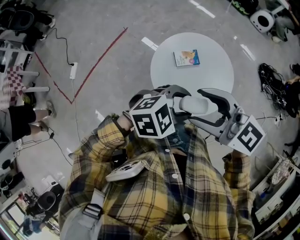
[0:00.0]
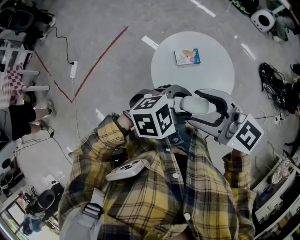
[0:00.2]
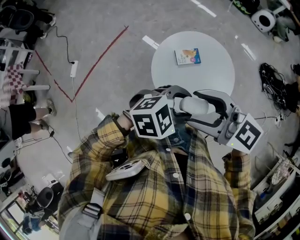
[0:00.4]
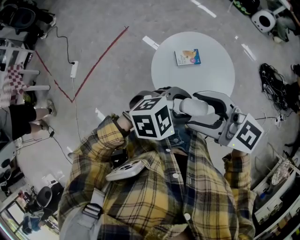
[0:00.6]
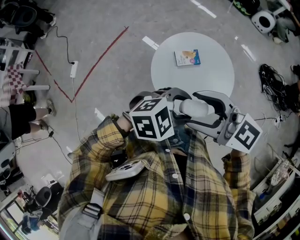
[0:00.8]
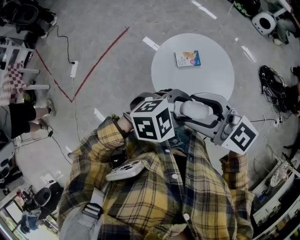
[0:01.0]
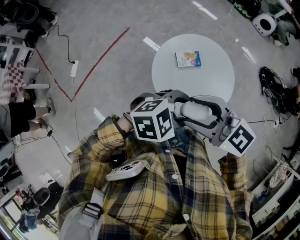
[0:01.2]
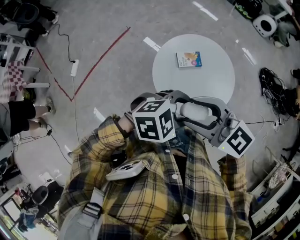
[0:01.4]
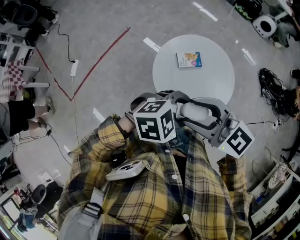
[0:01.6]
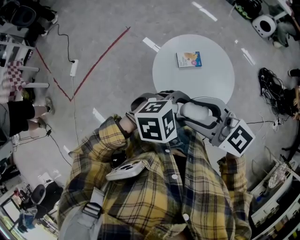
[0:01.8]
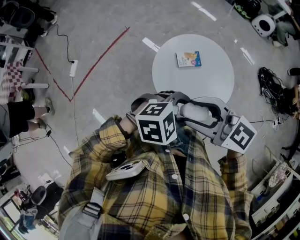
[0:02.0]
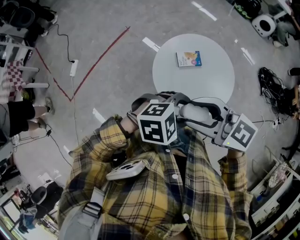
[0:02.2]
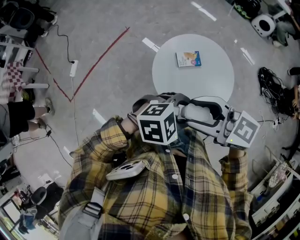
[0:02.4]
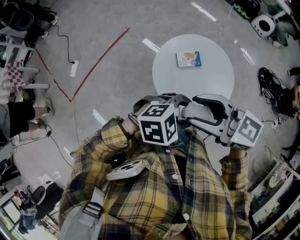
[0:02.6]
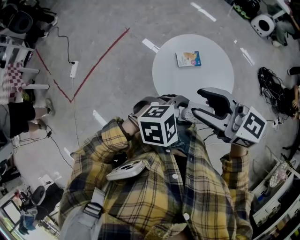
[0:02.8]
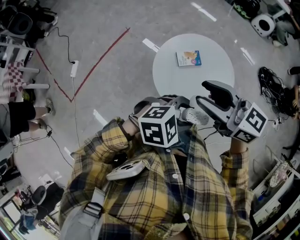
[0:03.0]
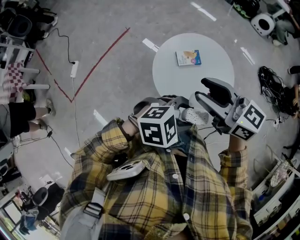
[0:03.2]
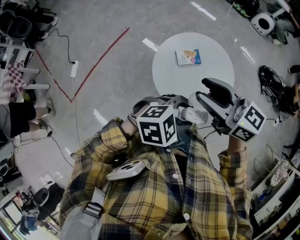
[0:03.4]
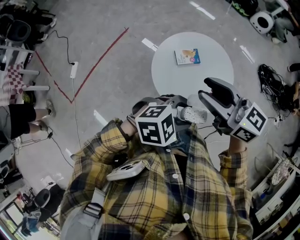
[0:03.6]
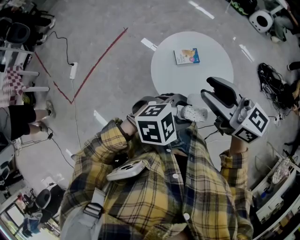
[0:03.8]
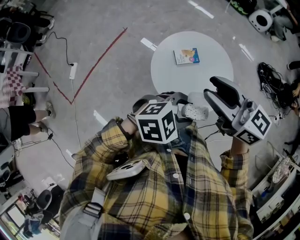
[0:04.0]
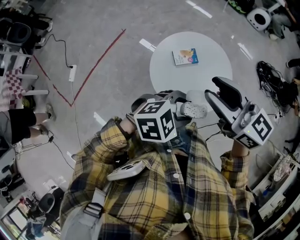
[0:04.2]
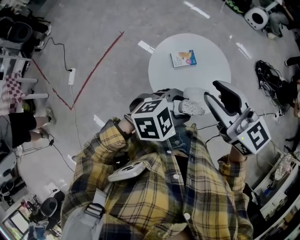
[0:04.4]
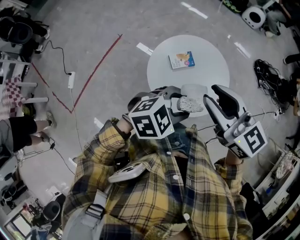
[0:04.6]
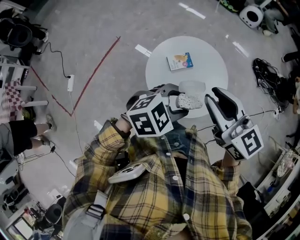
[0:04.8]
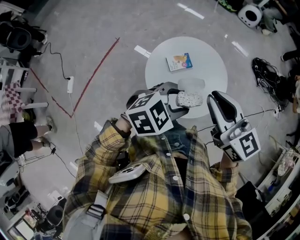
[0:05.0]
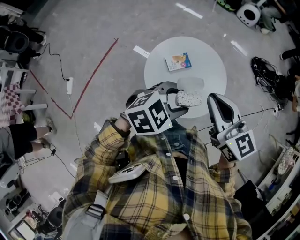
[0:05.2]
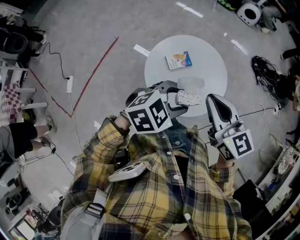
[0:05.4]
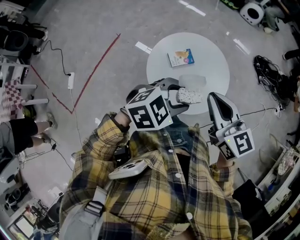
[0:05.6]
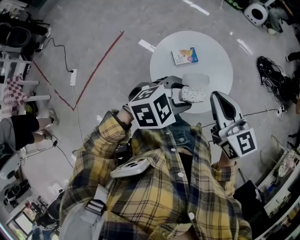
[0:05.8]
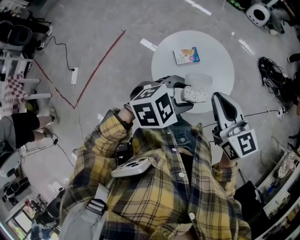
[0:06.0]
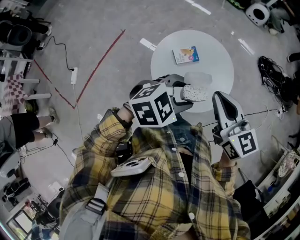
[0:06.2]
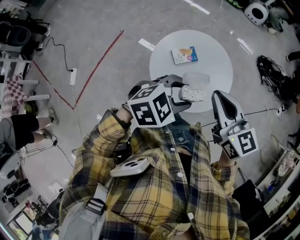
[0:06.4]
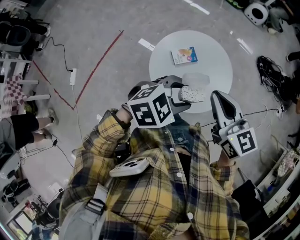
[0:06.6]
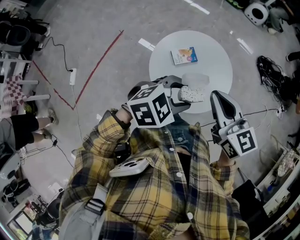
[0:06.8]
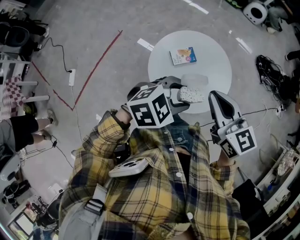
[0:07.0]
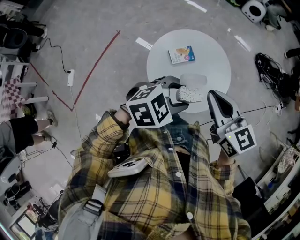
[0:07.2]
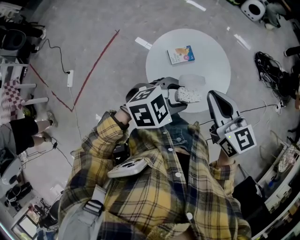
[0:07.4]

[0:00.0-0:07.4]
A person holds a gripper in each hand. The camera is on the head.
0:00.0 to 0:01.4: There are only small adjustments of the grippers.
0:01.4 to 0:03.0: The right gripper moves roughly 5 cm, and turns by approximately 20 degrees.
0:03.0 to 0:04.4: The grippers stay close to where they were, moving slightly.
0:04.4 to 0:06.0: The right gripper travels downward by about 5 cm, and closes.
0:06.0 to 0:07.4: The grippers stay close to where they were, moving slightly.

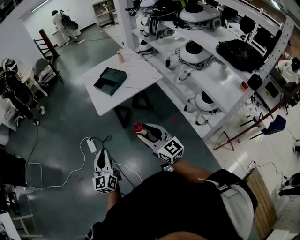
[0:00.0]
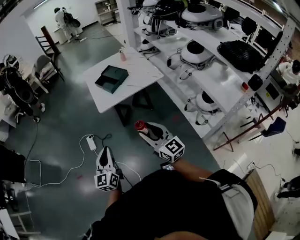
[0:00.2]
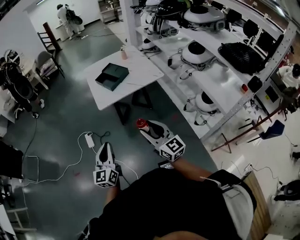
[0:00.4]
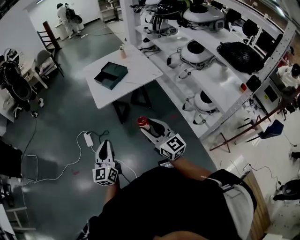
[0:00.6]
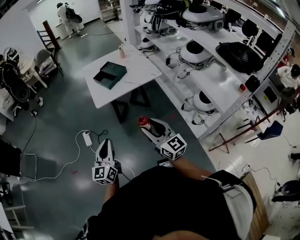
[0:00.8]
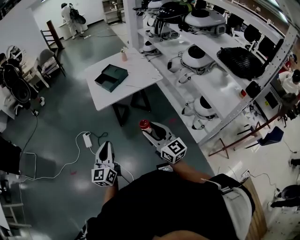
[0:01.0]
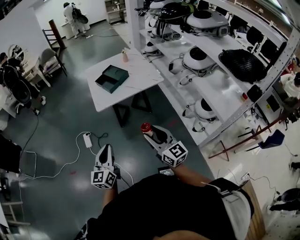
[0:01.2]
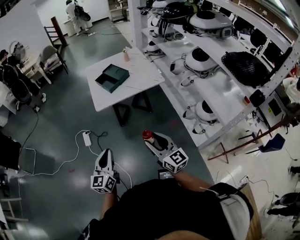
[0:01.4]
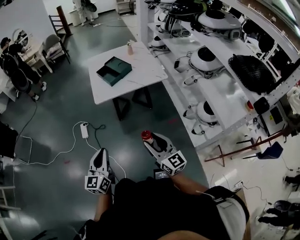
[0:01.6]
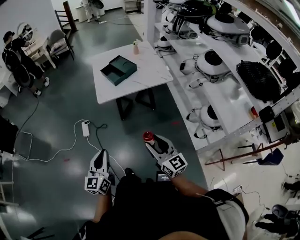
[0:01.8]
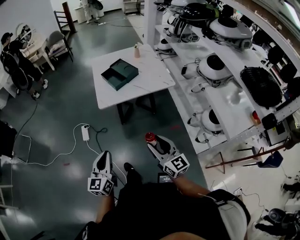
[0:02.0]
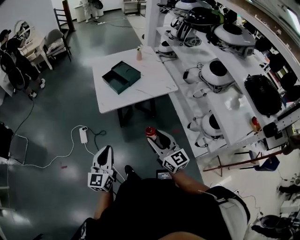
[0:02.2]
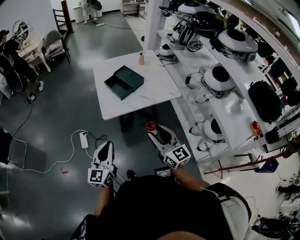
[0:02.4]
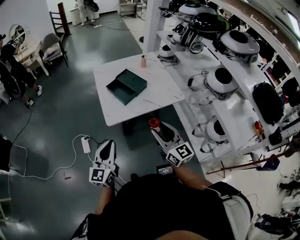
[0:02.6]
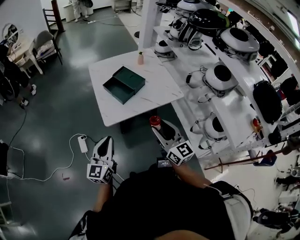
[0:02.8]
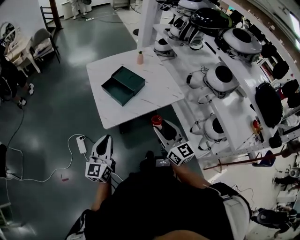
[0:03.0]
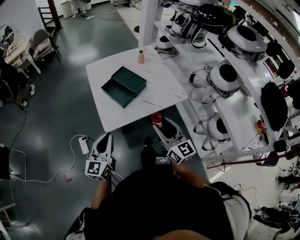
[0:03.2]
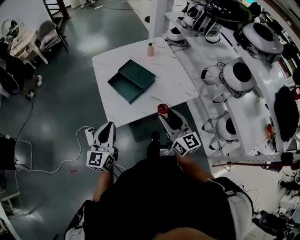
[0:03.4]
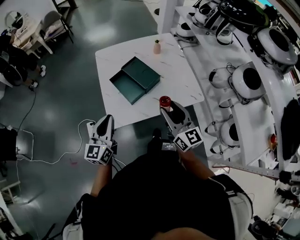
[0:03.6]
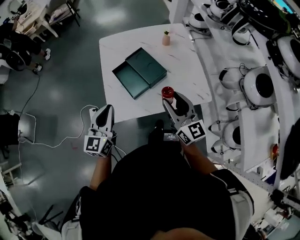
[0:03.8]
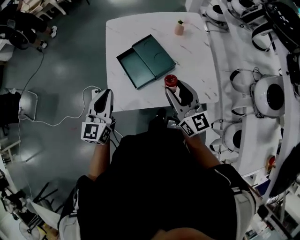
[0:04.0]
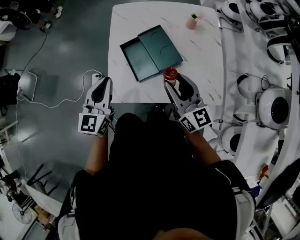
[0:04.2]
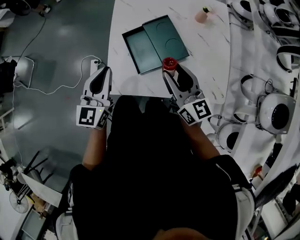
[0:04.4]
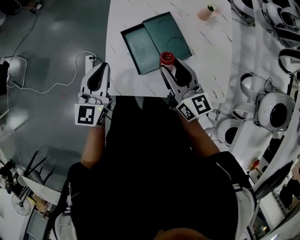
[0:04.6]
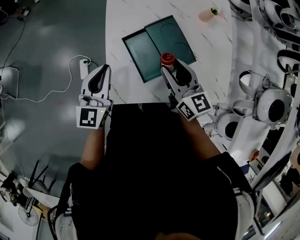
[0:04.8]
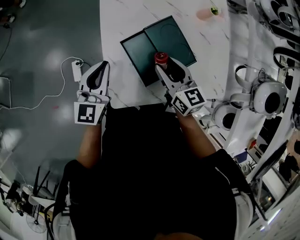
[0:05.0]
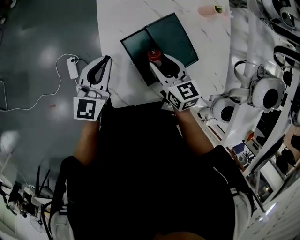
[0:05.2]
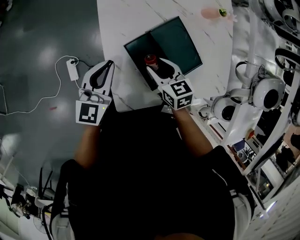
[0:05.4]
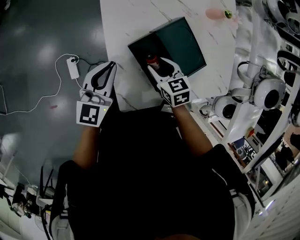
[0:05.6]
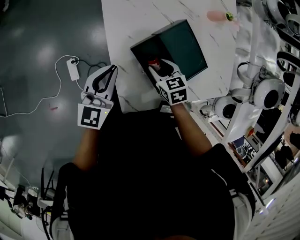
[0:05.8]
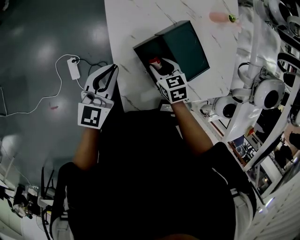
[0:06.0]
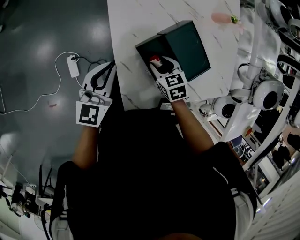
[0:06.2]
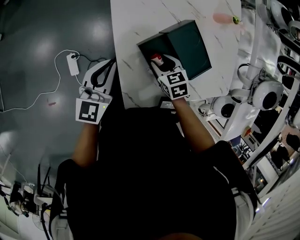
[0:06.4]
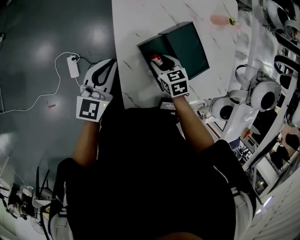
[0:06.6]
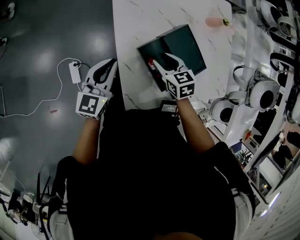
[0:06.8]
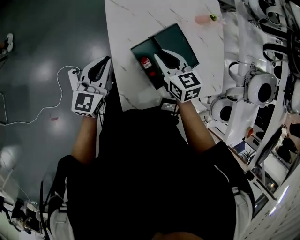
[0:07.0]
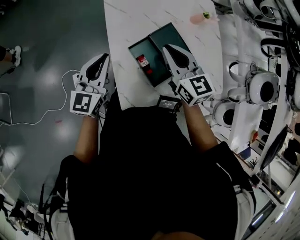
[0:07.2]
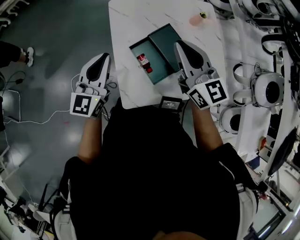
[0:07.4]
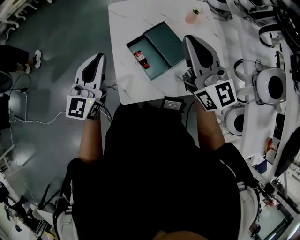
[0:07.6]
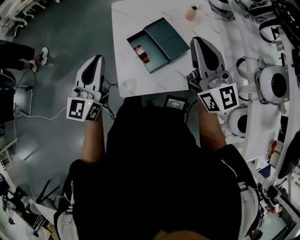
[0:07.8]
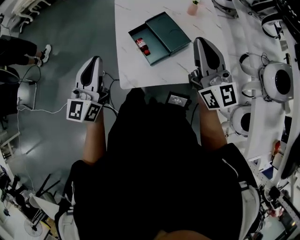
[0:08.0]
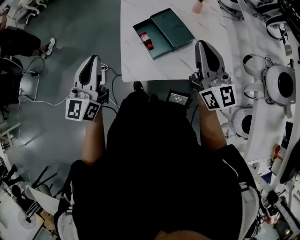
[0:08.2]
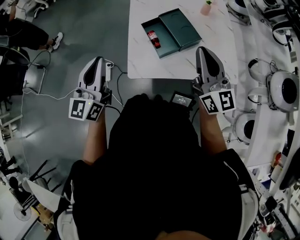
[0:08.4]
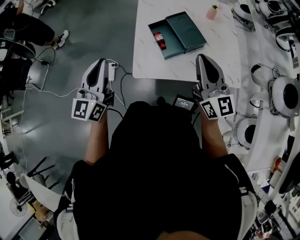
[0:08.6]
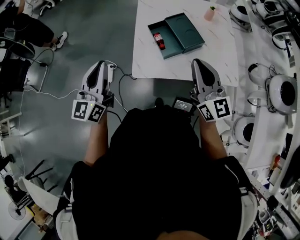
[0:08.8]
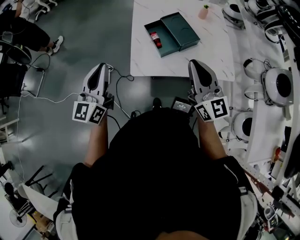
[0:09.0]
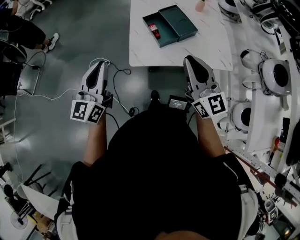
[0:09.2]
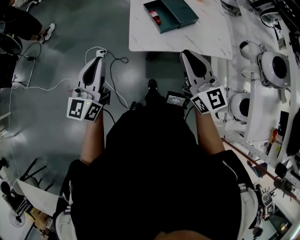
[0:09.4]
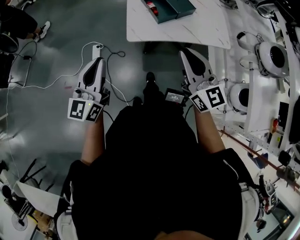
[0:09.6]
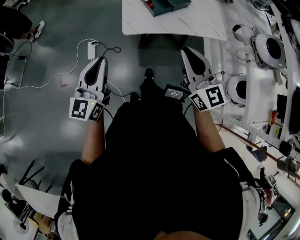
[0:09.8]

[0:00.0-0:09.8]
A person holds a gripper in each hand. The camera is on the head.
0:00.0 to 0:01.4: Both grippers travel together to the right, roughly 5 cm.
0:01.4 to 0:02.8: The grippers both shift forward by roughly 25 cm.
0:02.8 to 0:04.2: Both grippers travel together forward, some 30 cm. The right gripper swivels roughly 20 degrees; the left gripper changes its angle by roughly 20 degrees.
0:04.2 to 0:05.6: The left gripper heads forward, downward and to the left, covering about 20 cm, and changes its angle by roughly 20 degrees. Meanwhile the right gripper moves downward, to the left and forward, approximately 30 cm, and tilts its fingers some 50 degrees downward.
0:05.6 to 0:07.0: The right gripper is displaced upward by approximately 10 cm, and closes its fingers.
0:07.0 to 0:08.4: The left gripper is displaced backward and upward by some 30 cm, and turns by about 30 degrees; the right gripper goes roughly 35 cm backward, upward and to the right, and tilts its fingers some 50 degrees upward.
0:08.4 to 0:09.8: The right gripper heads backward and to the left, covering about 25 cm. Meanwhile the left gripper is displaced backward by some 25 cm.

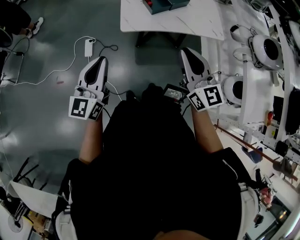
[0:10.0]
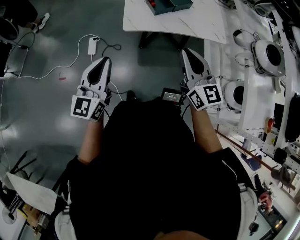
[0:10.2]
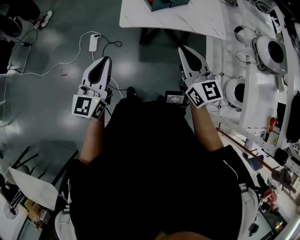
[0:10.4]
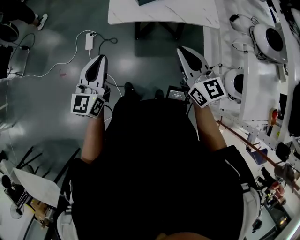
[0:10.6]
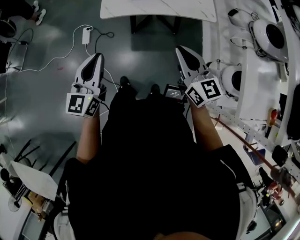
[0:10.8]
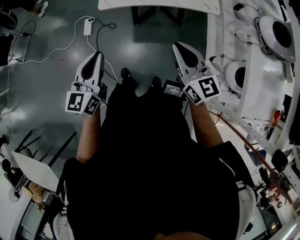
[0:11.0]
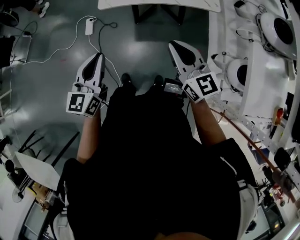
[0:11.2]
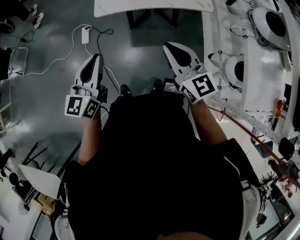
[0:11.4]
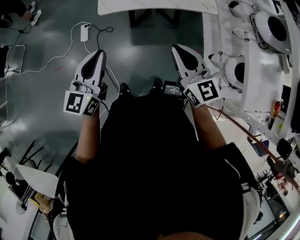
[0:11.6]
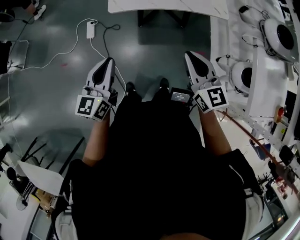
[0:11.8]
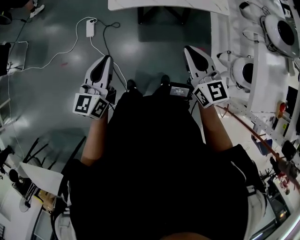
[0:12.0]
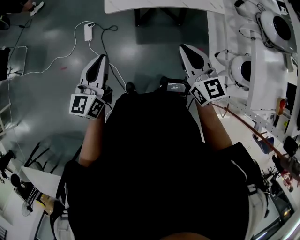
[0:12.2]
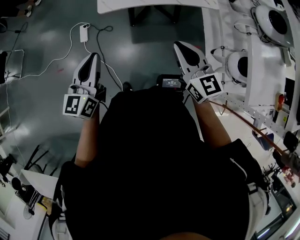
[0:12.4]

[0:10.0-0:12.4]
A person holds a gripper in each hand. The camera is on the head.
0:10.0 to 0:11.2: The right gripper heads to the right, backward and downward, covering approximately 15 cm. The left gripper goes roughly 15 cm to the right and backward.
0:11.2 to 0:12.4: The left gripper heads to the left, covering some 5 cm.

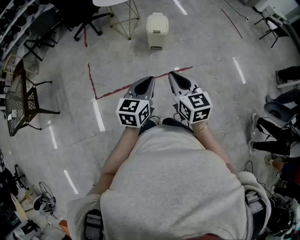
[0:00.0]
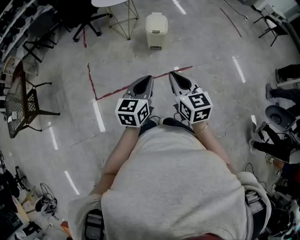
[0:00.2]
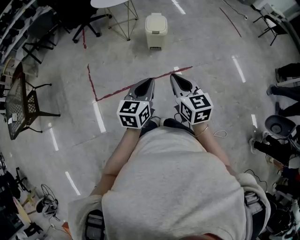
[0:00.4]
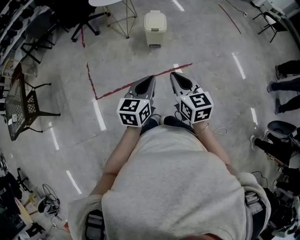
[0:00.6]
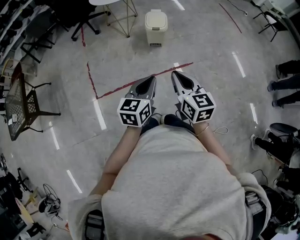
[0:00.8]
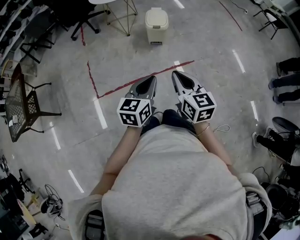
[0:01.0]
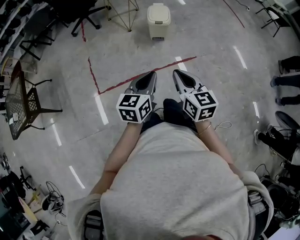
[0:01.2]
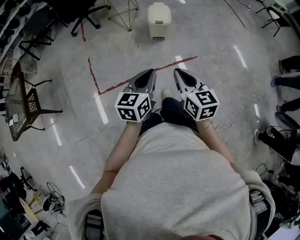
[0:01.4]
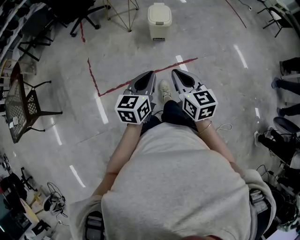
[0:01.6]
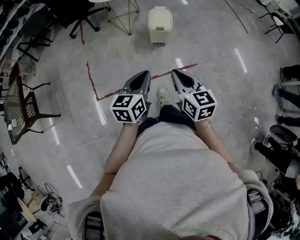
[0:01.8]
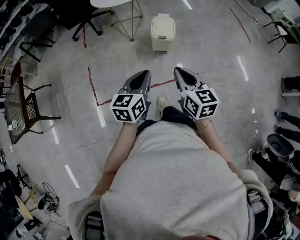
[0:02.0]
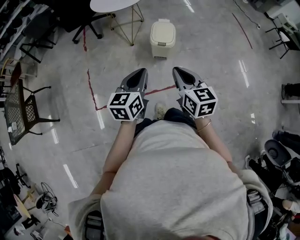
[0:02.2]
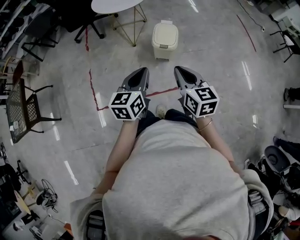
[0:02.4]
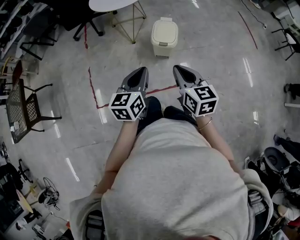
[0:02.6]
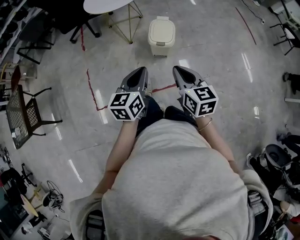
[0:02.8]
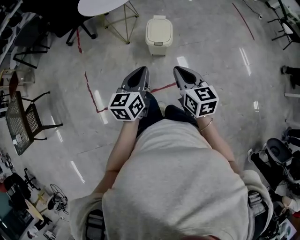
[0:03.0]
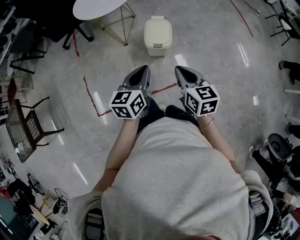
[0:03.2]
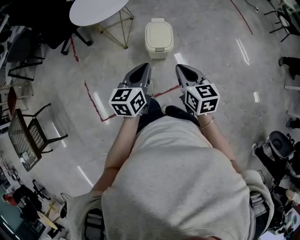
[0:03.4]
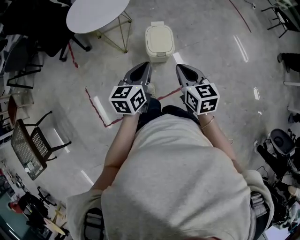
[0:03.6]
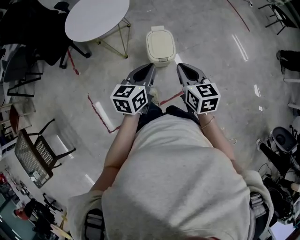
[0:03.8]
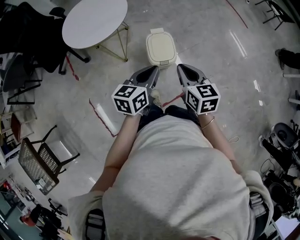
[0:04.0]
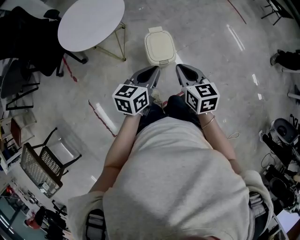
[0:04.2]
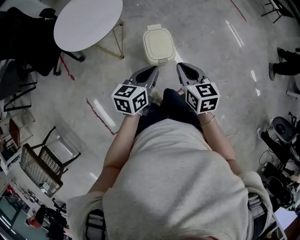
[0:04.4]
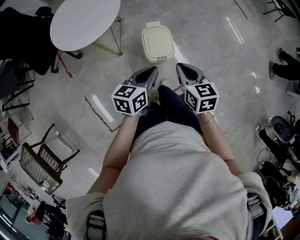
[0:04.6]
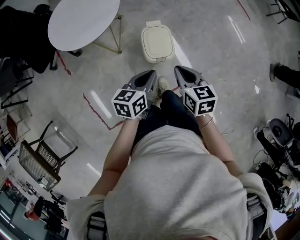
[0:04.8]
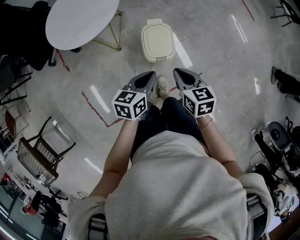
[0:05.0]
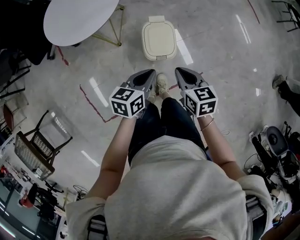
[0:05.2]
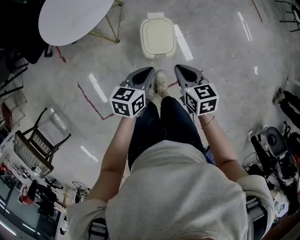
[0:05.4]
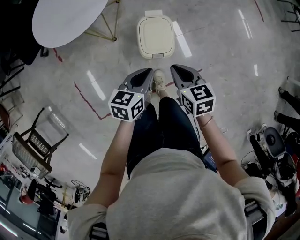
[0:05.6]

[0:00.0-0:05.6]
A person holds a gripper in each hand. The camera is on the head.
0:00.0 to 0:01.4: The left gripper moves roughly 5 cm.
0:01.4 to 0:02.8: Both grippers move forward, roughly 30 cm.
0:02.8 to 0:04.2: The right gripper moves some 25 cm. Meanwhile the left gripper shifts by about 25 cm, and changes its angle by approximately 30 degrees.
0:04.2 to 0:05.6: Both grippers travel together downward and forward, some 15 cm.
